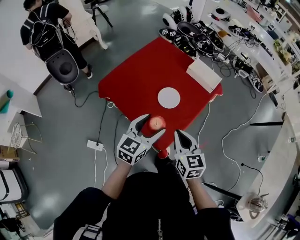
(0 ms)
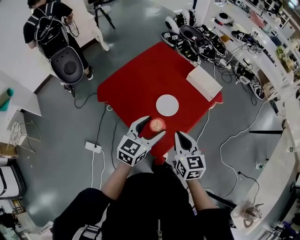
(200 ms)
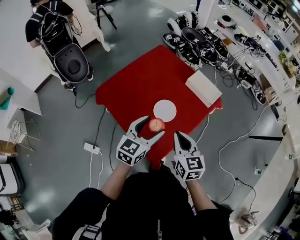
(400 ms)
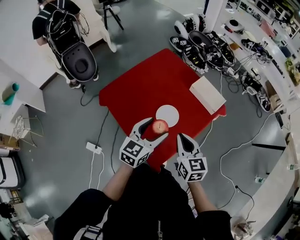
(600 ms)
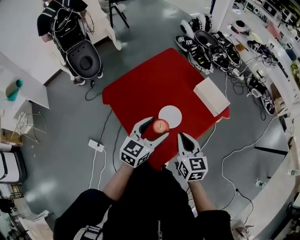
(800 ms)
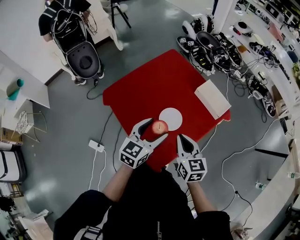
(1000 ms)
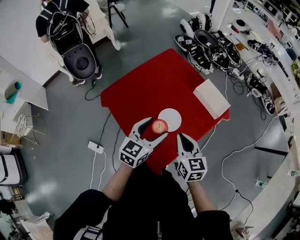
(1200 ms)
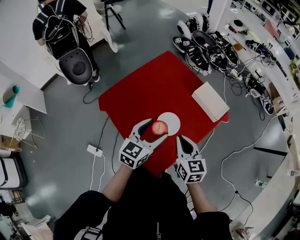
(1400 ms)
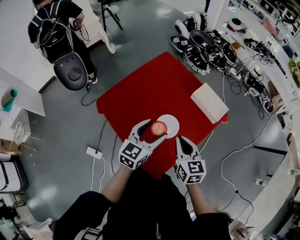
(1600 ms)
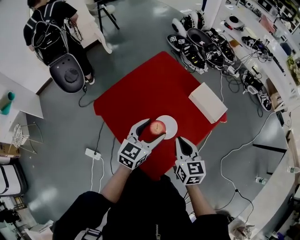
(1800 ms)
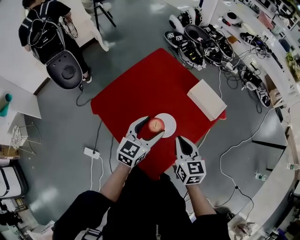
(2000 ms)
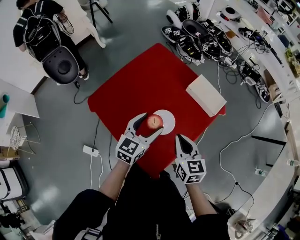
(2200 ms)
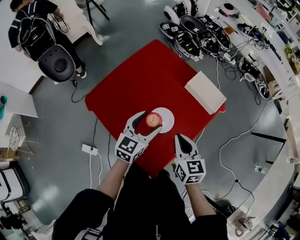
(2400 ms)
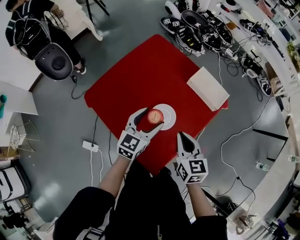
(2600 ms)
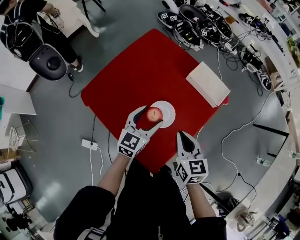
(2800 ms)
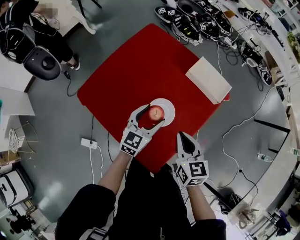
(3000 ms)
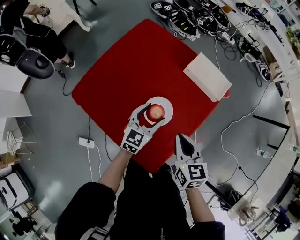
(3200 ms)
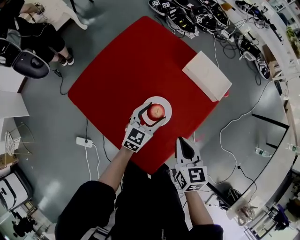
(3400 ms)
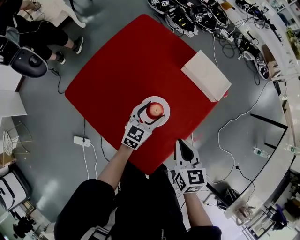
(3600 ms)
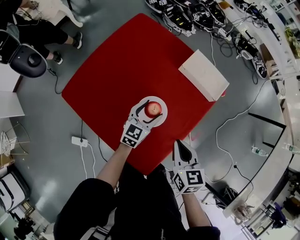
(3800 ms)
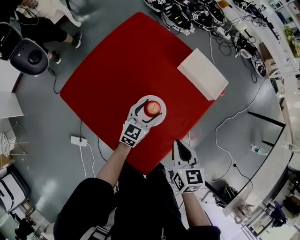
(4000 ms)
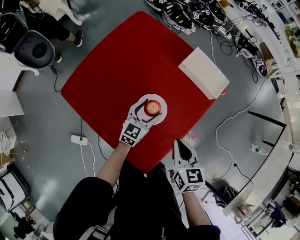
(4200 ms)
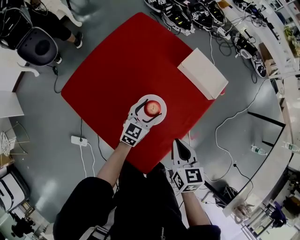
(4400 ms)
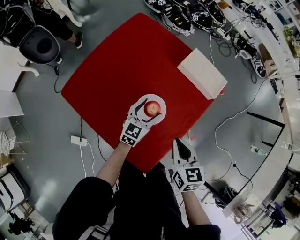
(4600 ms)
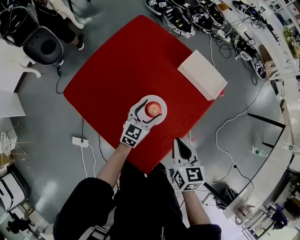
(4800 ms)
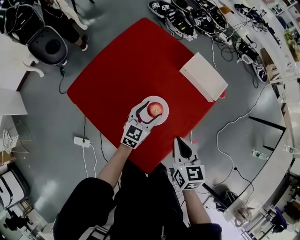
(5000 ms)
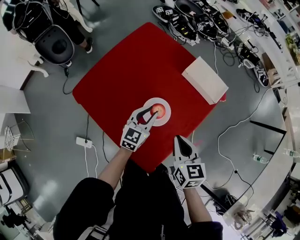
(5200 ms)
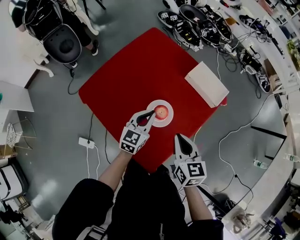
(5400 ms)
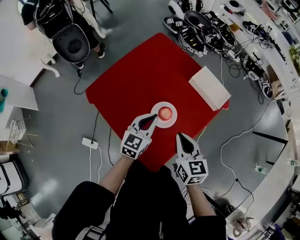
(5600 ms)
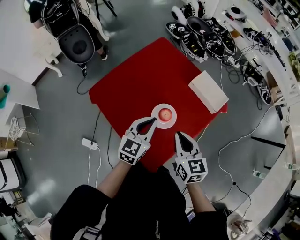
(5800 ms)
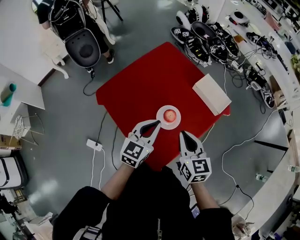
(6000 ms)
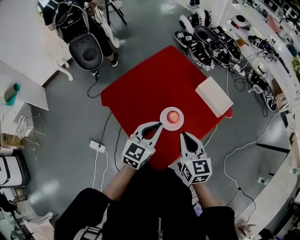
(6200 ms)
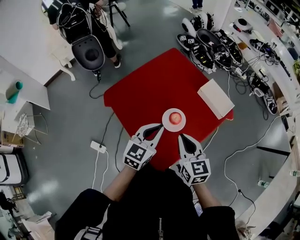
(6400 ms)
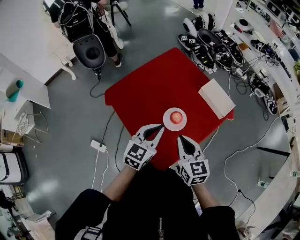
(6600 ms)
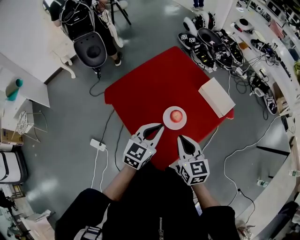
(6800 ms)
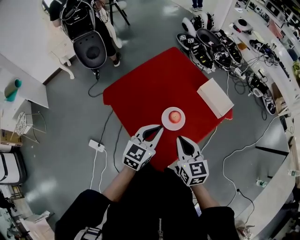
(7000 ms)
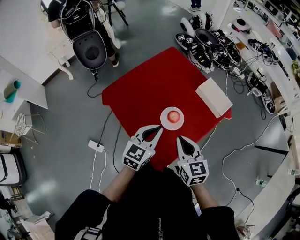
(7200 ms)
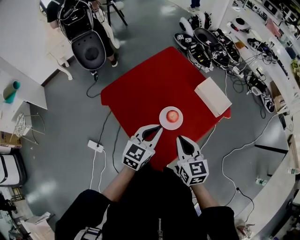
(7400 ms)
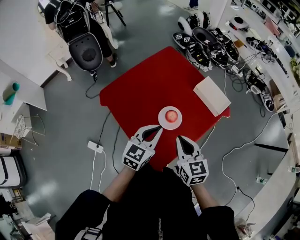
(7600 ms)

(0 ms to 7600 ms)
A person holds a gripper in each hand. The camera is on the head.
0 ms - 1600 ms: Both grippers travel together forward, roughly 20 cm.
1600 ms - 3000 ms: The right gripper shifts some 5 cm downward, while the left gripper heads downward and forward, covering about 15 cm.
3000 ms - 4600 ms: The right gripper changes place by roughly 5 cm; the left gripper shifts roughly 10 cm downward.
4600 ms - 6000 ms: The left gripper shifts roughly 25 cm upward and backward, and closes. The right gripper is displaced upward by roughly 10 cm, and changes its angle by approximately 20 degrees.
6000 ms - 7600 ms: The grippers stay close to where they were, moving slightly.

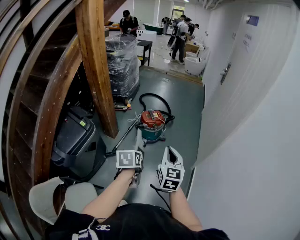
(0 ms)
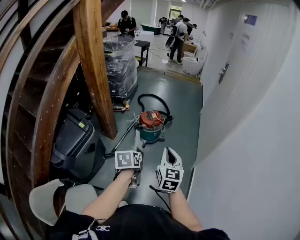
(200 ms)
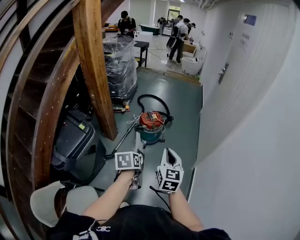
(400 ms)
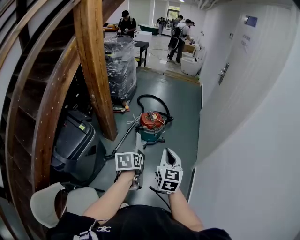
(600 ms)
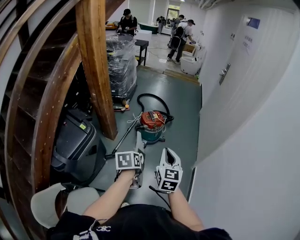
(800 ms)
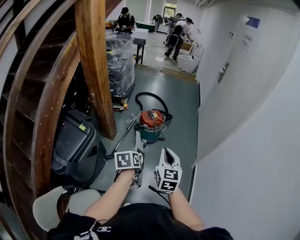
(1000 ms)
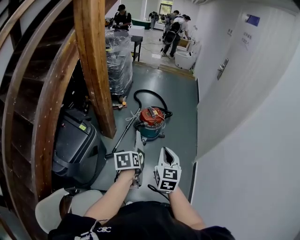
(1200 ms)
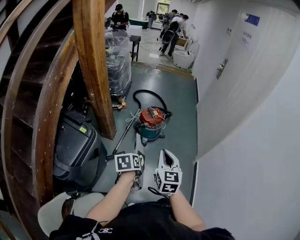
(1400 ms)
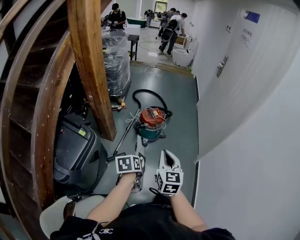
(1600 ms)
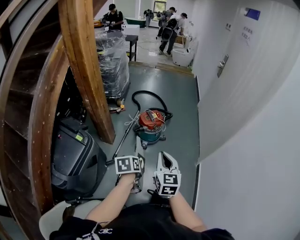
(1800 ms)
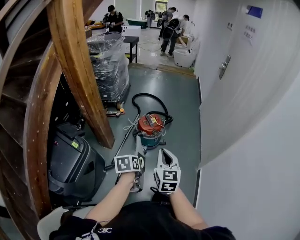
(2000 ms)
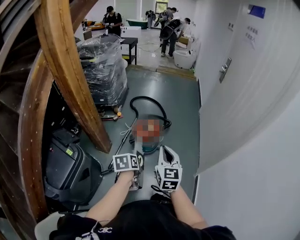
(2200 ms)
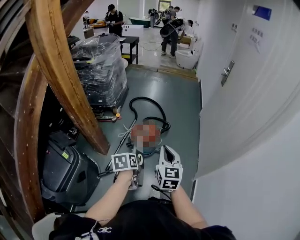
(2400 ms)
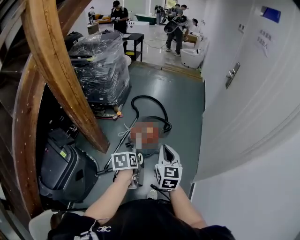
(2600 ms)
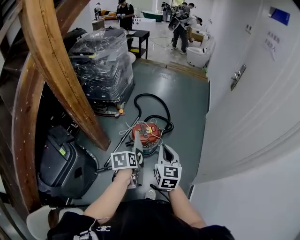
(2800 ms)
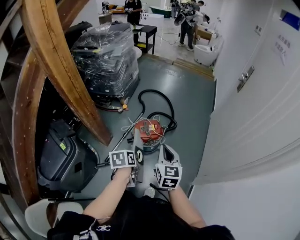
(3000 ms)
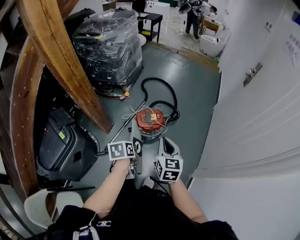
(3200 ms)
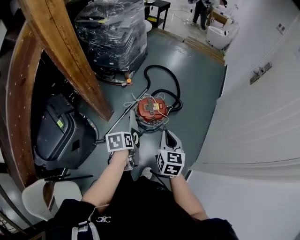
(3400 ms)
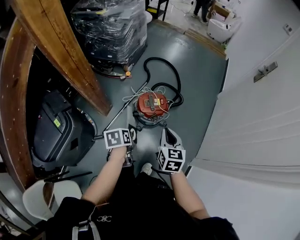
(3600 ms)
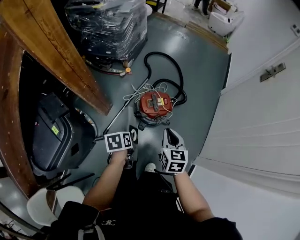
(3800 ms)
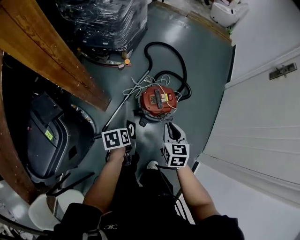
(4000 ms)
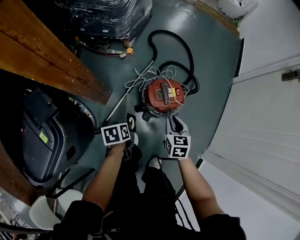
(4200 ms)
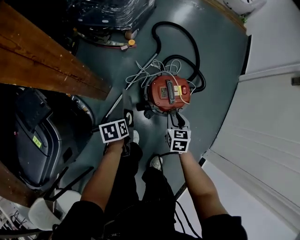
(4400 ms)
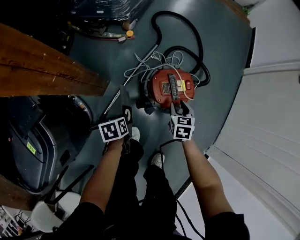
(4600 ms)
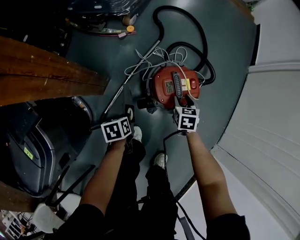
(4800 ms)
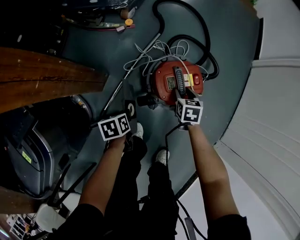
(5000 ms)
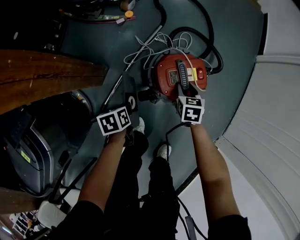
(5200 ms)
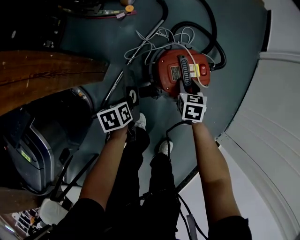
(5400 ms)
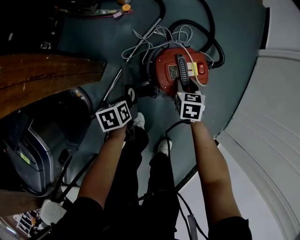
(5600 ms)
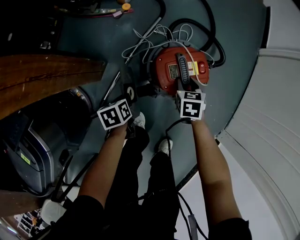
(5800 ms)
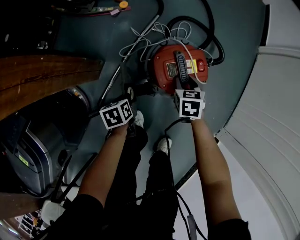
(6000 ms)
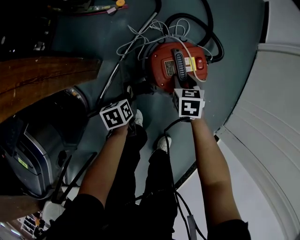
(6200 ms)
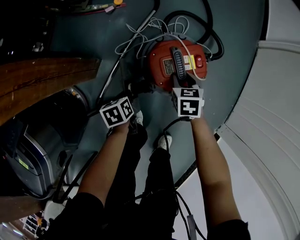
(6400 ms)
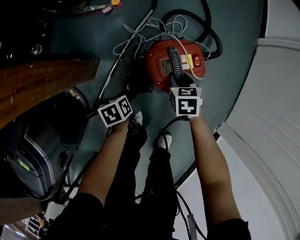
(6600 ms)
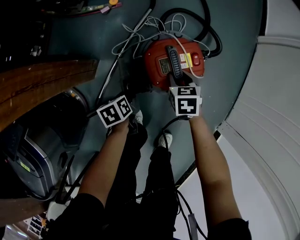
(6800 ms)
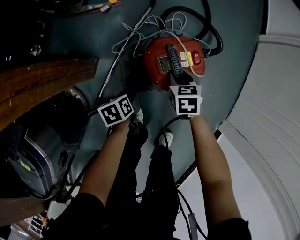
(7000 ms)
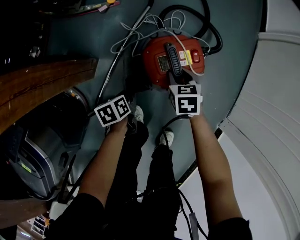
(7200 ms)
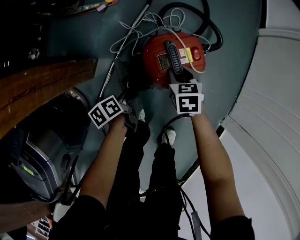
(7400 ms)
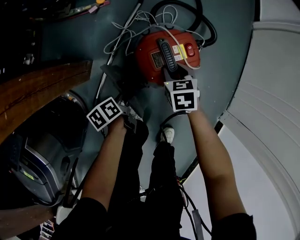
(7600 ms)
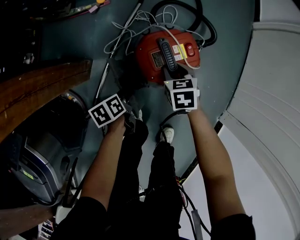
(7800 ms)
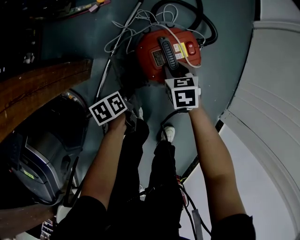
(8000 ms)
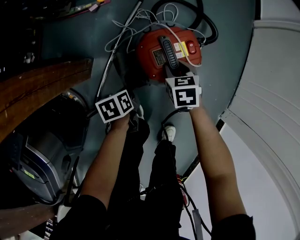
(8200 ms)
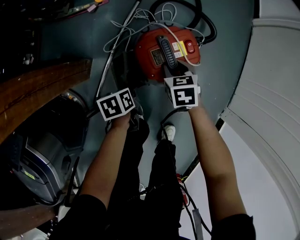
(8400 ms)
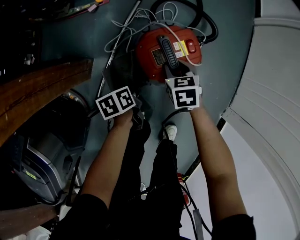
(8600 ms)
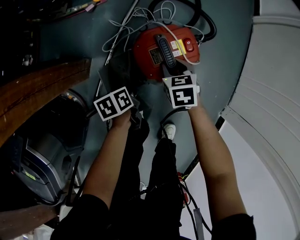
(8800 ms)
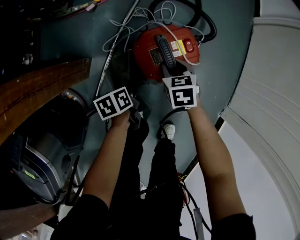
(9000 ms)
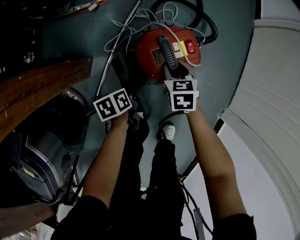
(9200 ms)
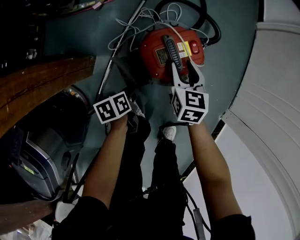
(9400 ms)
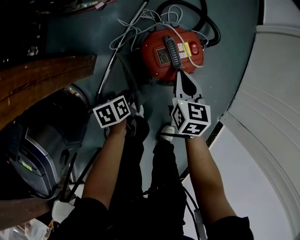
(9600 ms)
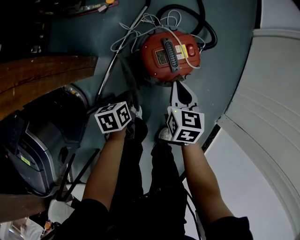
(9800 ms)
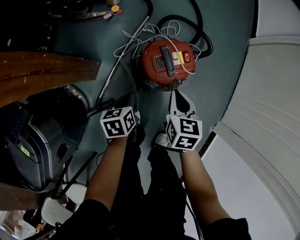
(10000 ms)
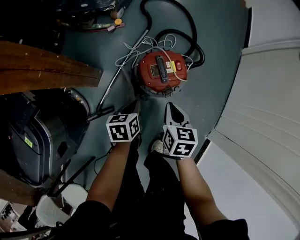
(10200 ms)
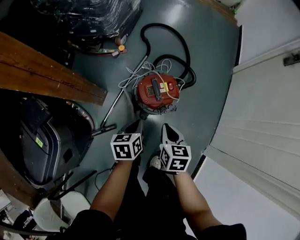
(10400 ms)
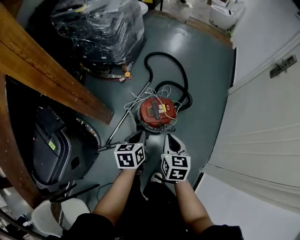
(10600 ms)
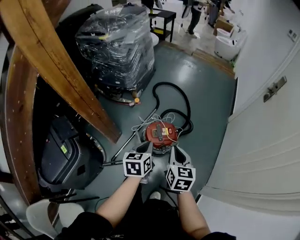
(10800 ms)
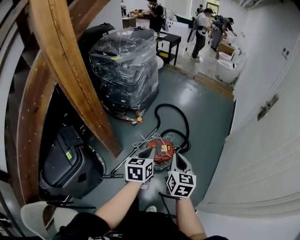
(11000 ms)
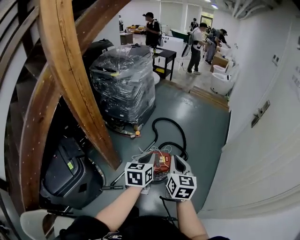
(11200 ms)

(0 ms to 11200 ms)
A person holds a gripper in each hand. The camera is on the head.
0 ms - 1600 ms: The left gripper goes approximately 10 cm to the left and downward; the right gripper heads to the left, covering about 15 cm.
1600 ms - 3200 ms: The grippers both shift forward by about 35 cm.
3200 ms - 4800 ms: The left gripper moves downward, to the left and forward, about 50 cm. Meanwhile the right gripper heads downward and forward, covering approximately 60 cm, tilts its fingers some 30 degrees downward, and opens.
4800 ms - 6400 ms: The left gripper is displaced downward by some 5 cm.
8000 ms - 9600 ms: The right gripper goes some 10 cm upward, rotates roughly 20 degrees, and closes up.
9600 ms - 11200 ms: The two grippers go approximately 60 cm upward. The right gripper rotates approximately 30 degrees, while the left gripper angles its fingers upward, by some 40 degrees, and closes up.

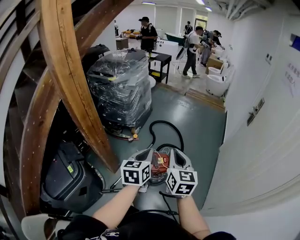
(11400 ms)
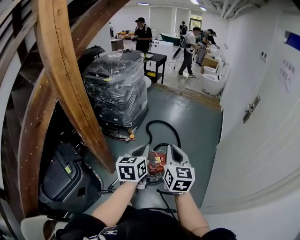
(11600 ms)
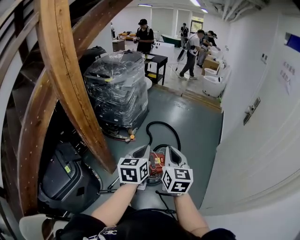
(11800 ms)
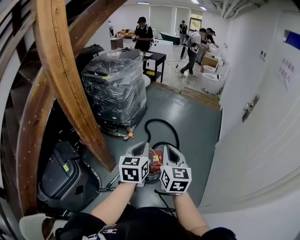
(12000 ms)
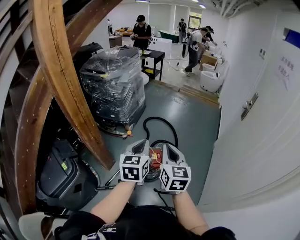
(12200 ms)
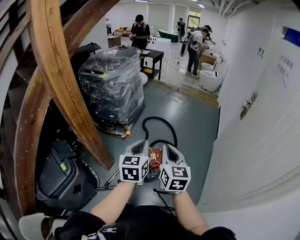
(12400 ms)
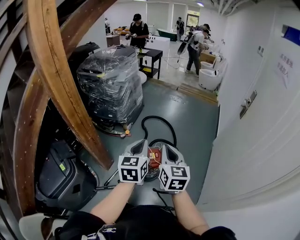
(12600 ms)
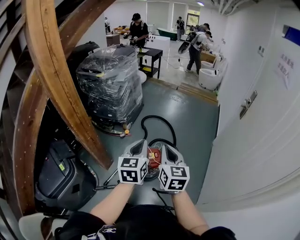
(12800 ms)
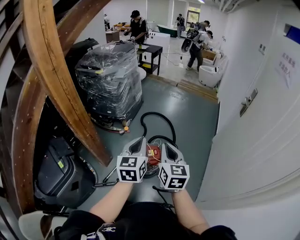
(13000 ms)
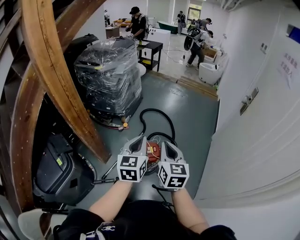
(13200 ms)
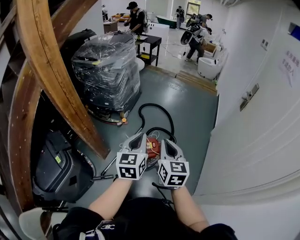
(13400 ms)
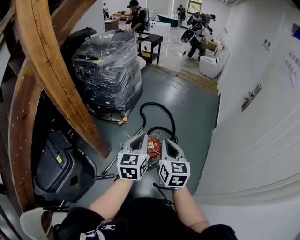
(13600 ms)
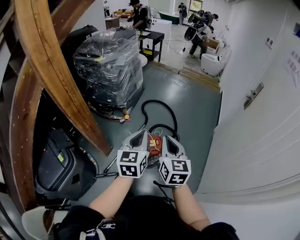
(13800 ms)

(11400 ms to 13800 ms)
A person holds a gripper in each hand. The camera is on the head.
11400 ms - 13800 ms: The grippers stay close to where they were, moving slightly.

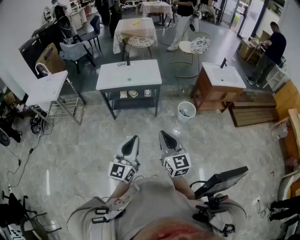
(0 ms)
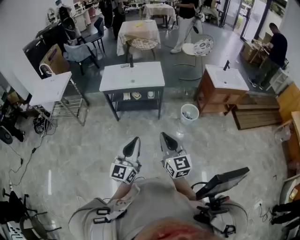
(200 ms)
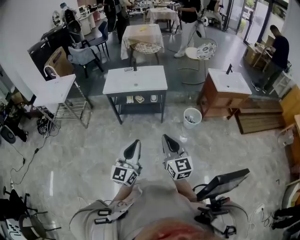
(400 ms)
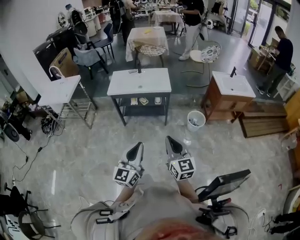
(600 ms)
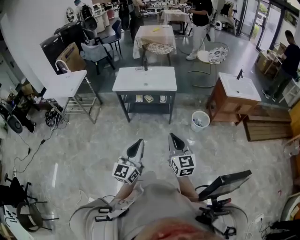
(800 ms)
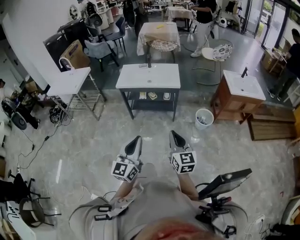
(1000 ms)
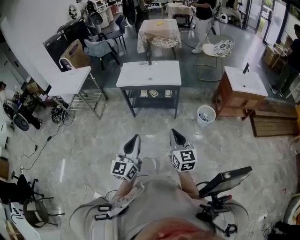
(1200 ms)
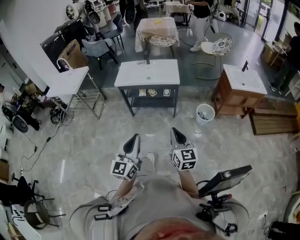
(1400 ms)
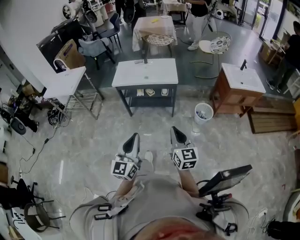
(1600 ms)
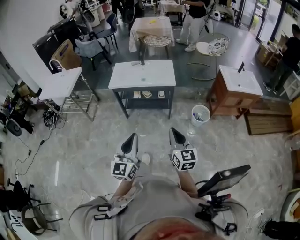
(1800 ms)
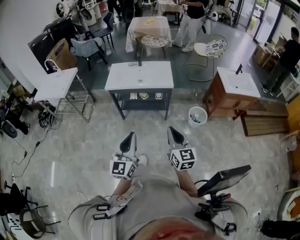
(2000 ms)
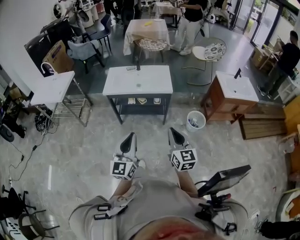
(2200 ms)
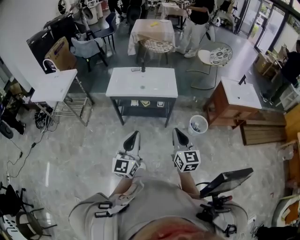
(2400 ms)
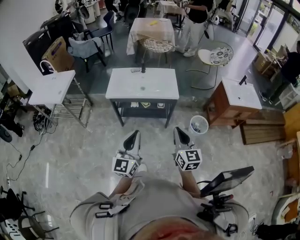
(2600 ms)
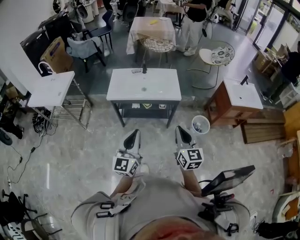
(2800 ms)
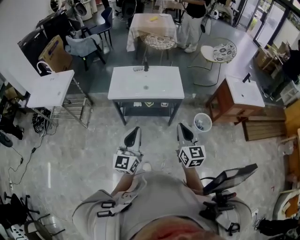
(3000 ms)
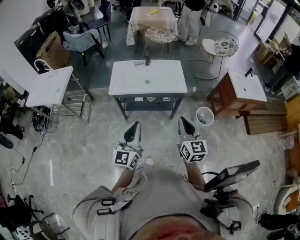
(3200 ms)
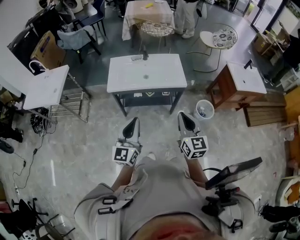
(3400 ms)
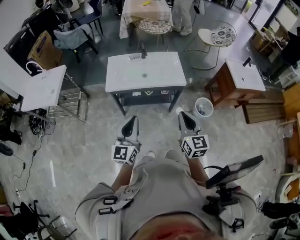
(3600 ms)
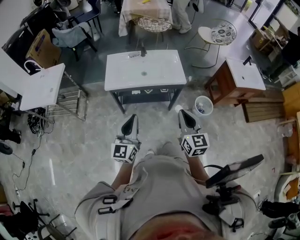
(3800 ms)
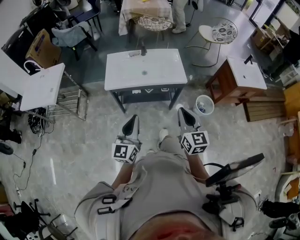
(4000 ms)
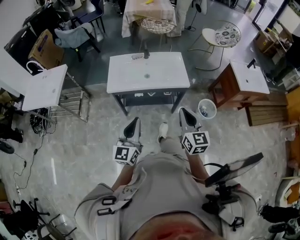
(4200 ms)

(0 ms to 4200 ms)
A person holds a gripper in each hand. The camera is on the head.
0 ms - 1400 ms: The right gripper shifts by roughly 5 cm.
1400 ms - 2800 ms: The two grippers go roughly 25 cm forward.
2800 ms - 4200 ms: The right gripper travels forward and to the left by about 10 cm. Meanwhile the left gripper heads forward, to the left and downward, covering approximately 15 cm.
